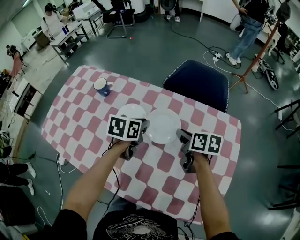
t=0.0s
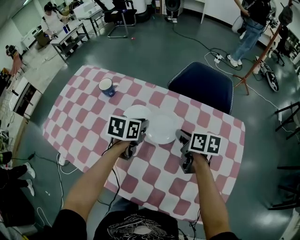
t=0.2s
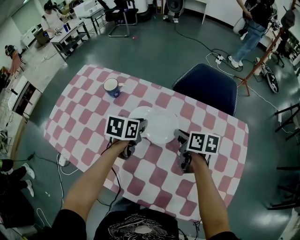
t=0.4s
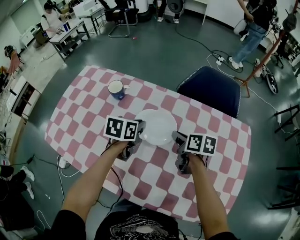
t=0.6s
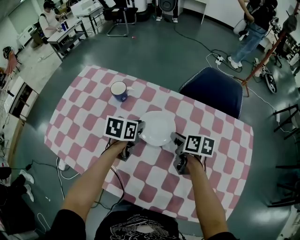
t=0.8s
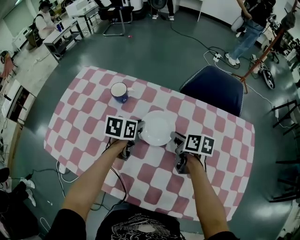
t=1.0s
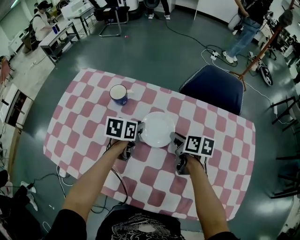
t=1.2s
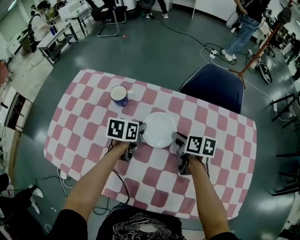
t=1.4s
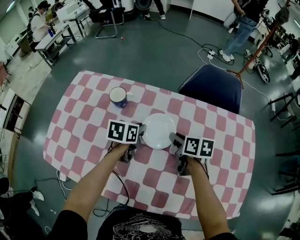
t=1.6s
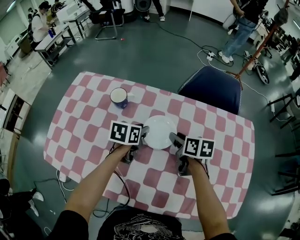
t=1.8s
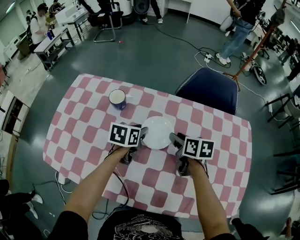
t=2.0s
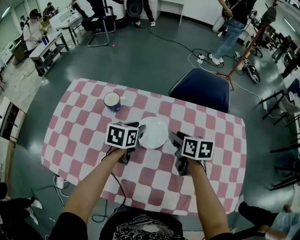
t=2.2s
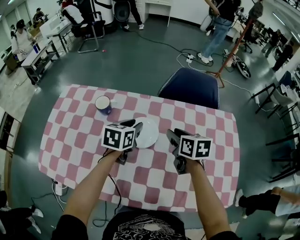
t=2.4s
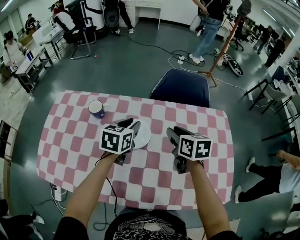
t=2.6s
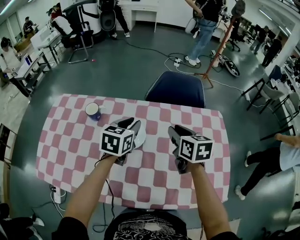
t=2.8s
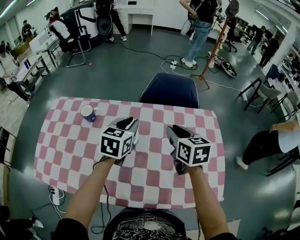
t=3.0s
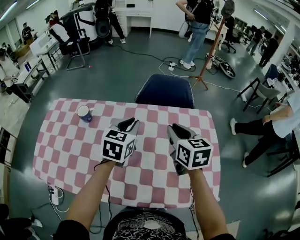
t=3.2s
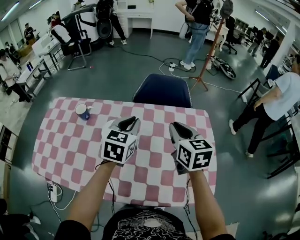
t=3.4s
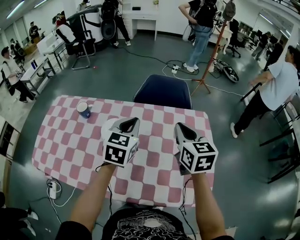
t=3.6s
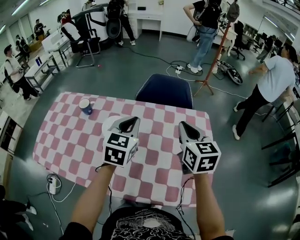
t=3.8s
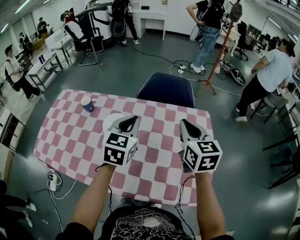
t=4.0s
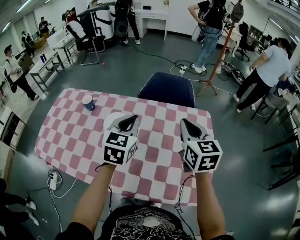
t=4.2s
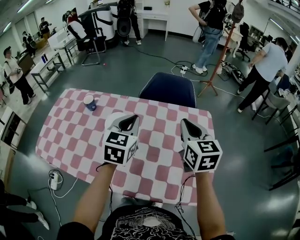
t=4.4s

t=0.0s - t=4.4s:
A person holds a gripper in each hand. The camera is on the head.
t=0.0s - t=1.4s: The two grippers go approximately 15 cm to the left.
t=1.4s - t=3.0s: Both grippers move upward and to the right, some 25 cm. The left gripper changes its angle by about 30 degrees; the right gripper swivels some 30 degrees.
t=3.0s - t=4.4s: The left gripper is displaced to the right, backward and upward by roughly 15 cm, while the right gripper goes approximately 15 cm to the right and upward.

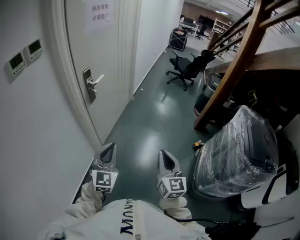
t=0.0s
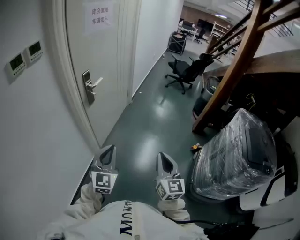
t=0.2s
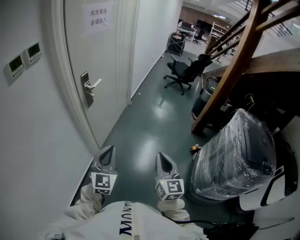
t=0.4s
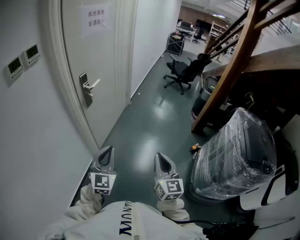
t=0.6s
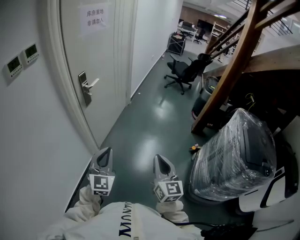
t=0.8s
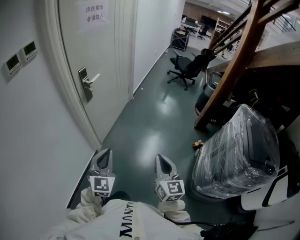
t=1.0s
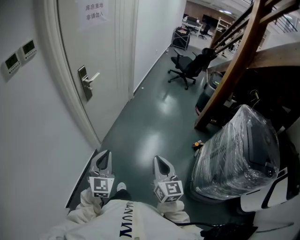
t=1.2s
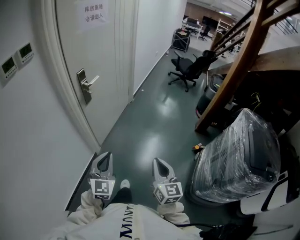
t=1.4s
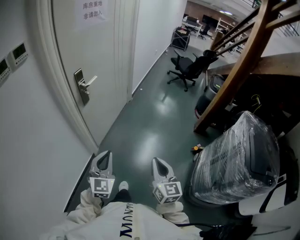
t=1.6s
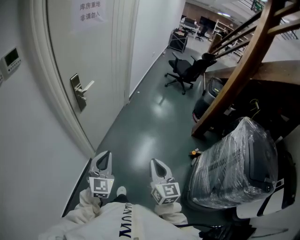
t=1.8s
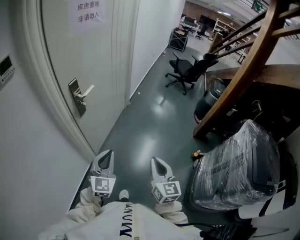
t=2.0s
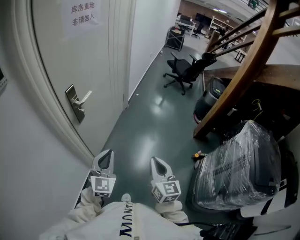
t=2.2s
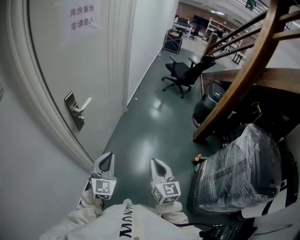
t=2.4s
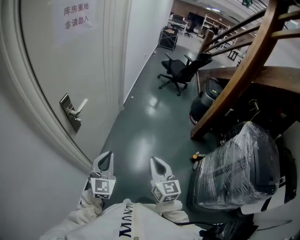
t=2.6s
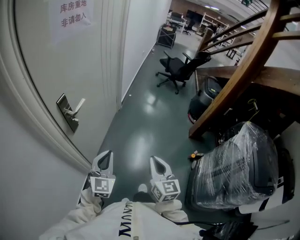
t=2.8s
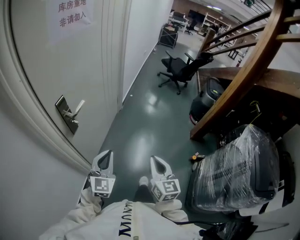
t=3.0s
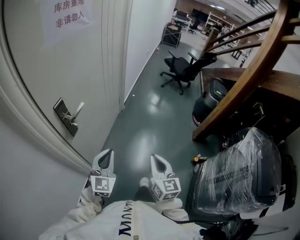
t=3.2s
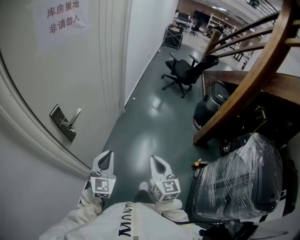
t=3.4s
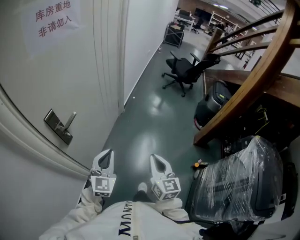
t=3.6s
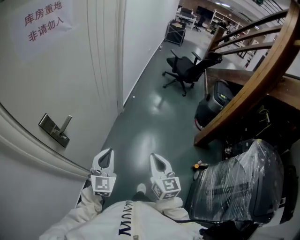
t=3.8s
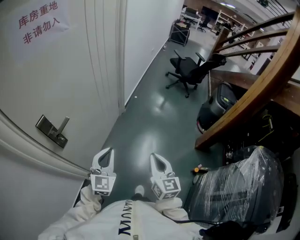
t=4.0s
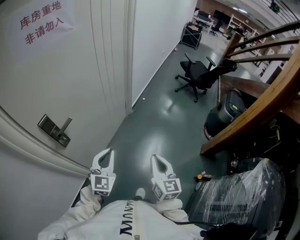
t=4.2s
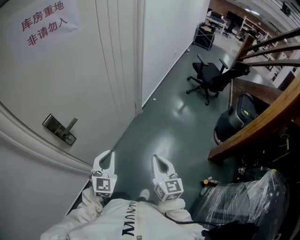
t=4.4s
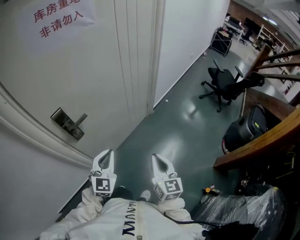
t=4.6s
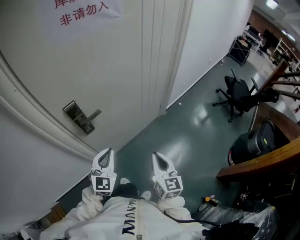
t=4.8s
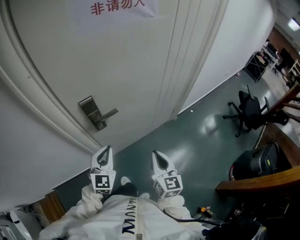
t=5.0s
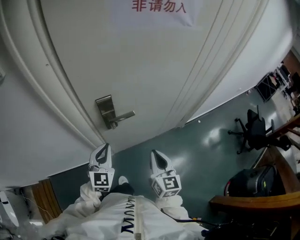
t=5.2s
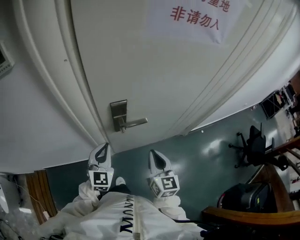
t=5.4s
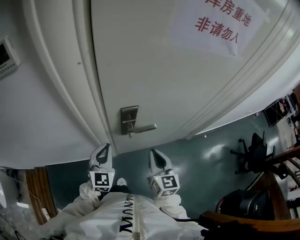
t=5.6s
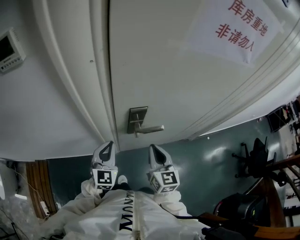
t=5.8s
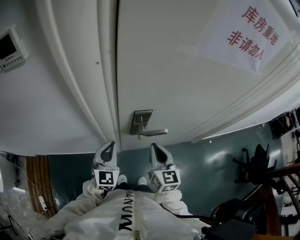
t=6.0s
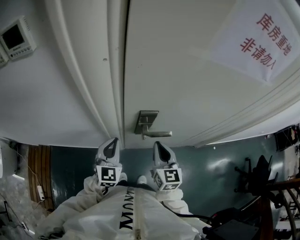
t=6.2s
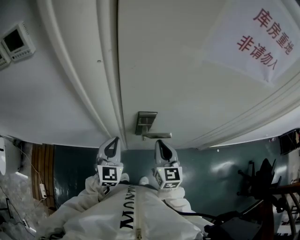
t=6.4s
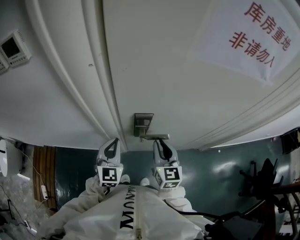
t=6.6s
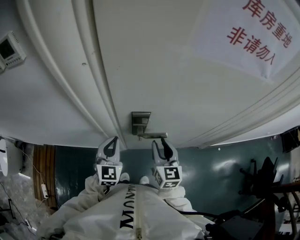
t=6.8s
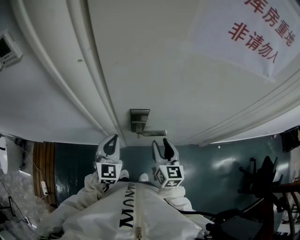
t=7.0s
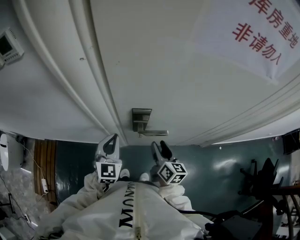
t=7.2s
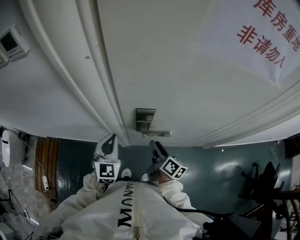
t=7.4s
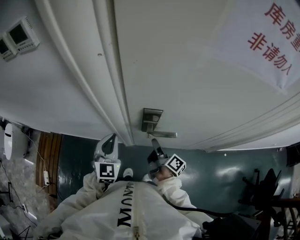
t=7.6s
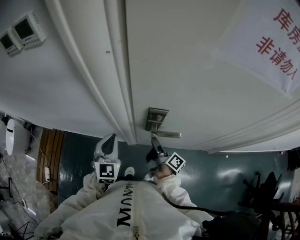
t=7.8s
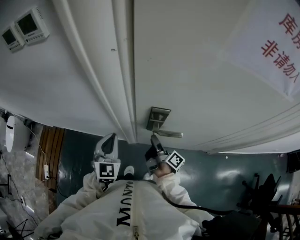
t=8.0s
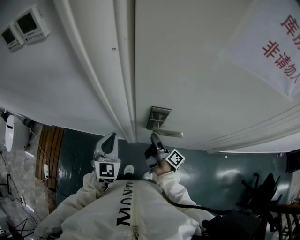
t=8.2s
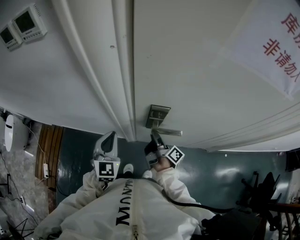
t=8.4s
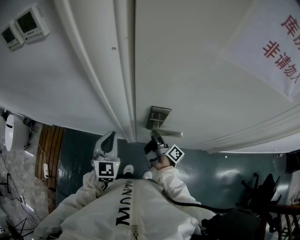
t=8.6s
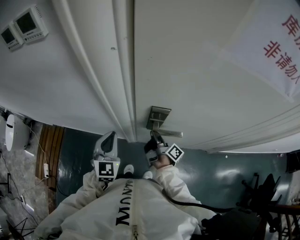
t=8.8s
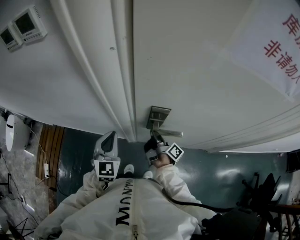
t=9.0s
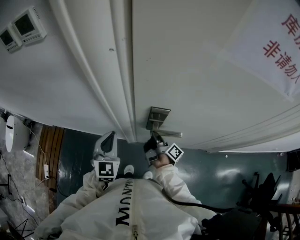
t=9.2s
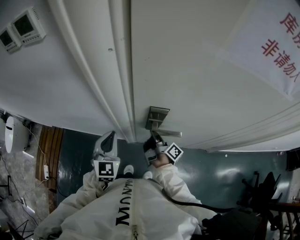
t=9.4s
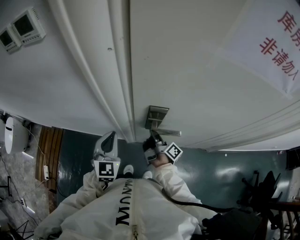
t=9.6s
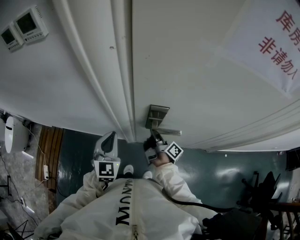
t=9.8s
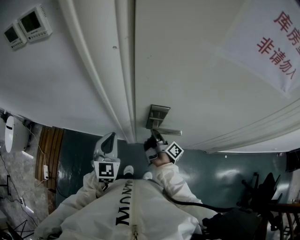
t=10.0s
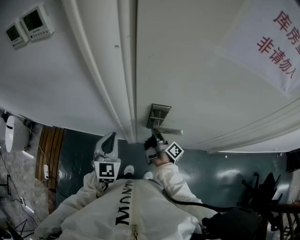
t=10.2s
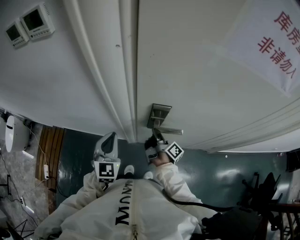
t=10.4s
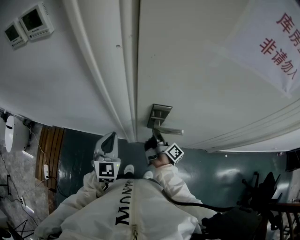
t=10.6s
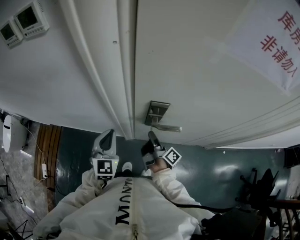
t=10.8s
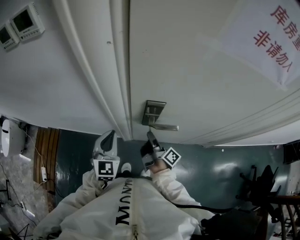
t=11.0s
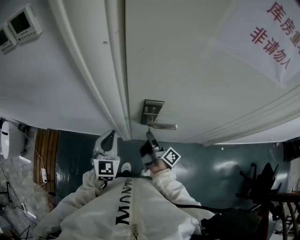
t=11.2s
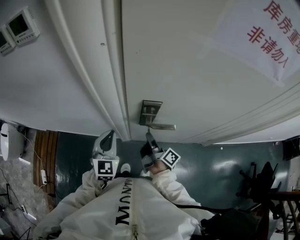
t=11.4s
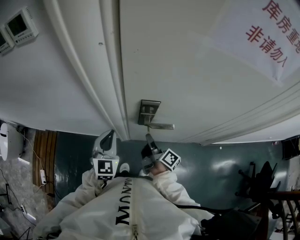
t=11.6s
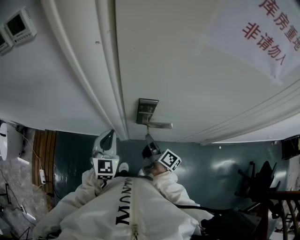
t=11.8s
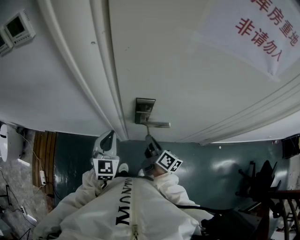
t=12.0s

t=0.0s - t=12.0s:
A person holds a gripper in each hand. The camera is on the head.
t=0.0s - t=1.6s: The two grippers go about 5 cm downward.
t=1.6s - t=3.0s: Both grippers travel together forward, roughly 25 cm.
t=3.0s - t=4.4s: The right gripper travels forward by some 20 cm. Meanwhile the left gripper travels forward and to the right by about 20 cm.
t=4.4s - t=6.0s: The right gripper ends up roughly 40 cm from where it was, and turns by some 50 degrees. The left gripper ends up approximately 30 cm from where it was, and turns by some 50 degrees.
t=6.0s - t=7.6s: The right gripper travels downward by roughly 10 cm, rolls clockwise, seen from behind, by roughly 70 degrees, and opens its fingers.
t=7.6s - t=9.0s: The right gripper heads forward, covering about 5 cm.
t=9.0s - t=10.4s: The right gripper closes up.
t=10.4s - t=12.0s: The right gripper shifts about 5 cm backward, and turns by approximately 30 degrees.

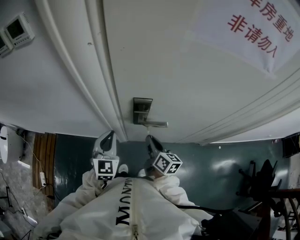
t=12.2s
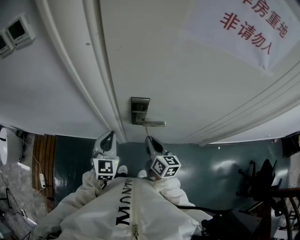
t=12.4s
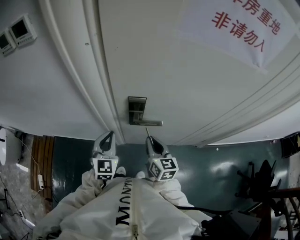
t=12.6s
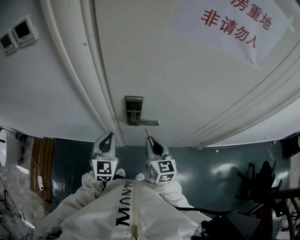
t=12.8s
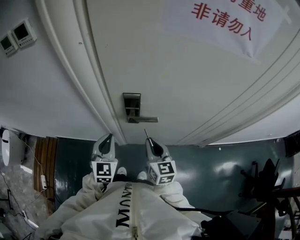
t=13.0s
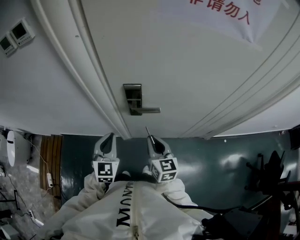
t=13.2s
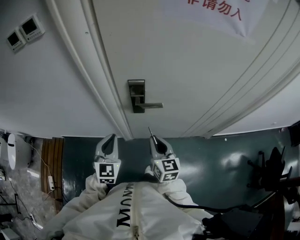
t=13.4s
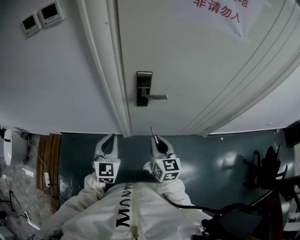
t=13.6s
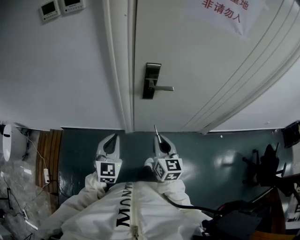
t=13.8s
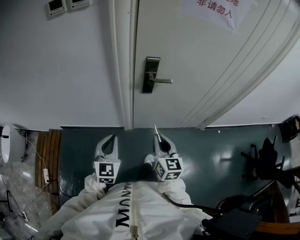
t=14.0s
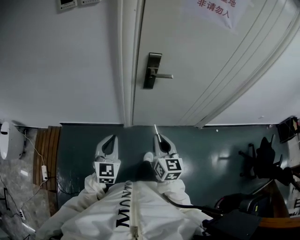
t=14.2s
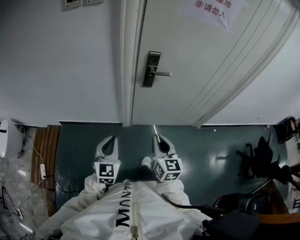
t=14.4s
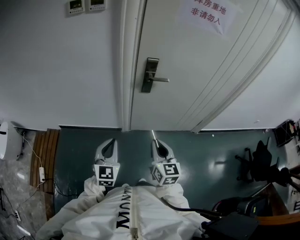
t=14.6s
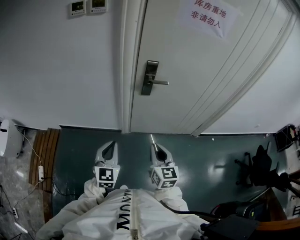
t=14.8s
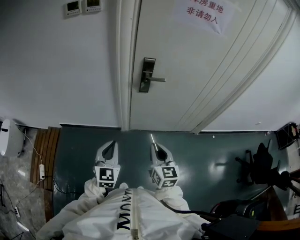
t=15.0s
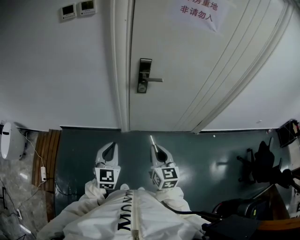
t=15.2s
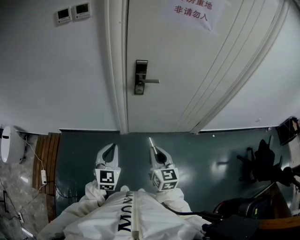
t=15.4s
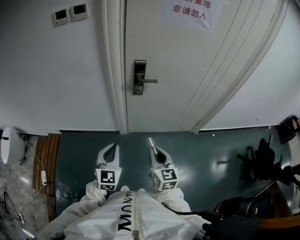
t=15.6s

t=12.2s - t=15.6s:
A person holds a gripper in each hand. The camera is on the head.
t=12.2s - t=13.8s: Both grippers move backward, roughly 20 cm. The right gripper rotates some 30 degrees.
t=13.8s - t=15.6s: Both grippers move backward, approximately 15 cm.

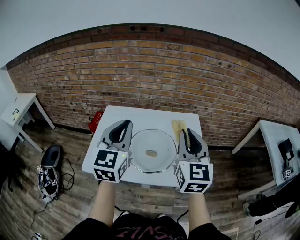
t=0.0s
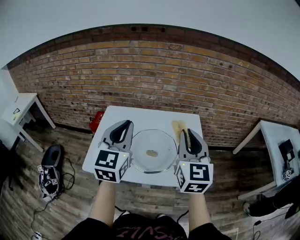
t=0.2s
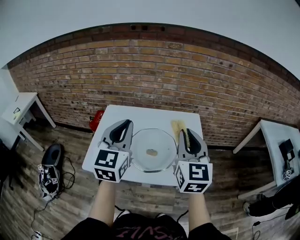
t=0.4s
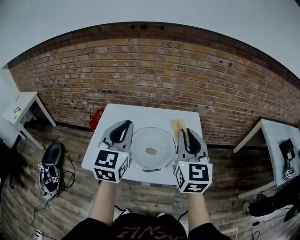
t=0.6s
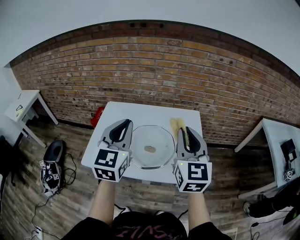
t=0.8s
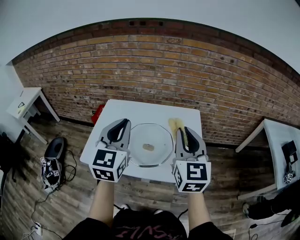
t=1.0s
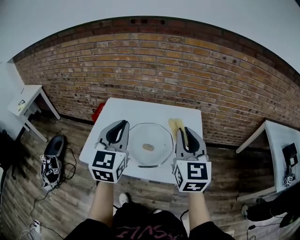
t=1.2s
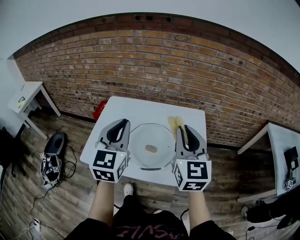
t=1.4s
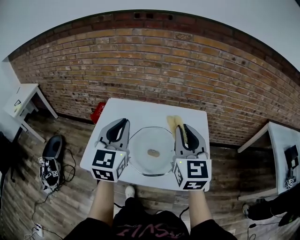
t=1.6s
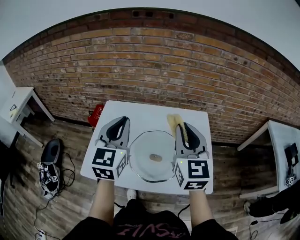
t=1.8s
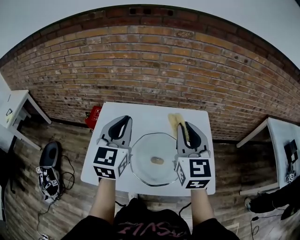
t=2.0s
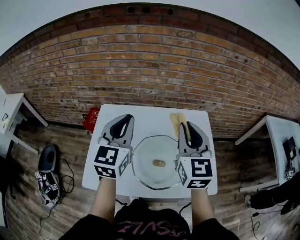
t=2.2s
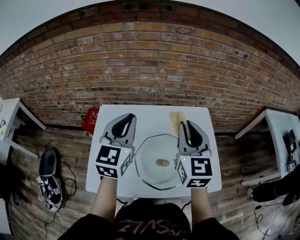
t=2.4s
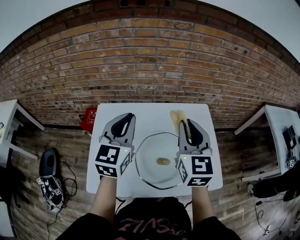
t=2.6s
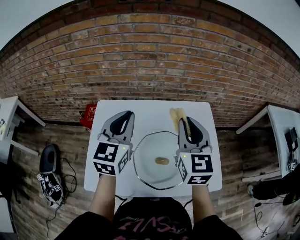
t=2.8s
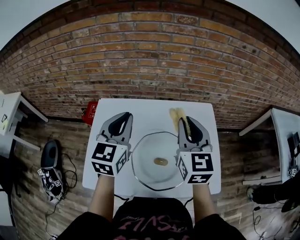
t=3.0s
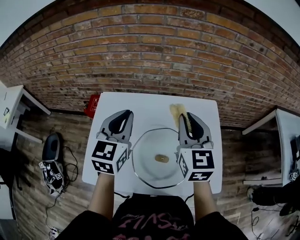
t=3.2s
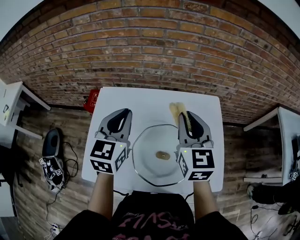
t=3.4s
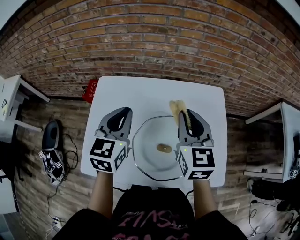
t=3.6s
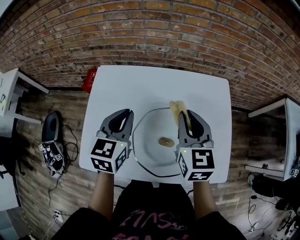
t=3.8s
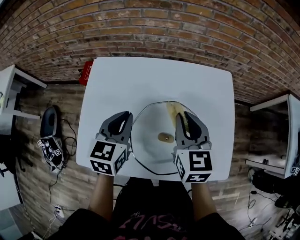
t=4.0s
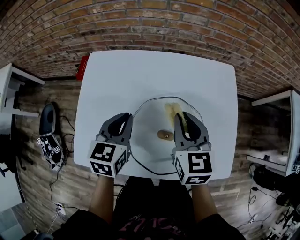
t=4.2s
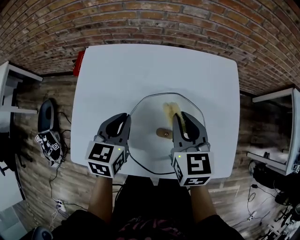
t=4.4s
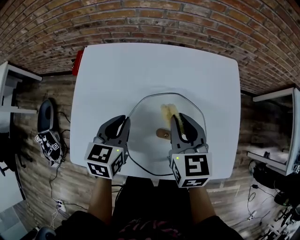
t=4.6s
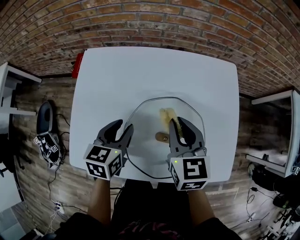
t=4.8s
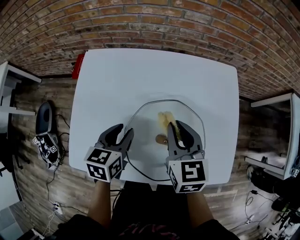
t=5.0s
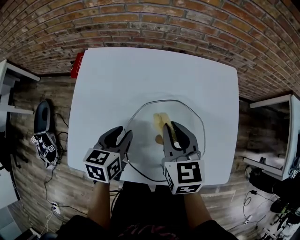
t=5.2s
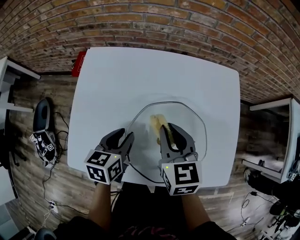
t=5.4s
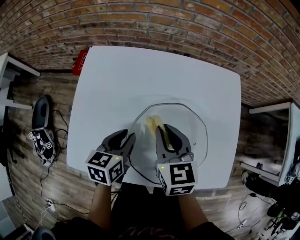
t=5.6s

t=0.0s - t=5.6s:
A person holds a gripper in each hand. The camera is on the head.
t=0.0s - t=1.4s: The grippers move only a little.
t=1.4s - t=2.8s: The right gripper is displaced forward and to the left by roughly 15 cm, while the left gripper travels forward by about 20 cm.
t=2.8s - t=4.2s: Both grippers move downward, about 20 cm. The left gripper rotates roughly 30 degrees. The right gripper swivels some 20 degrees.
t=4.2s - t=5.6s: The right gripper shifts some 5 cm to the left, while the left gripper shifts roughly 10 cm downward, and opens.
